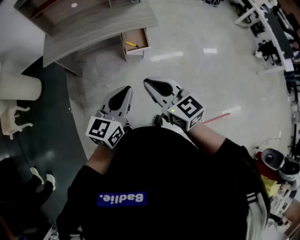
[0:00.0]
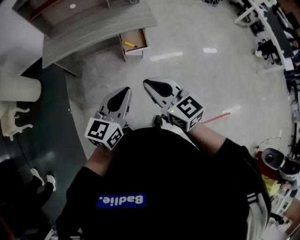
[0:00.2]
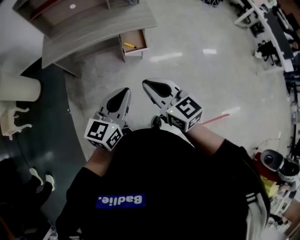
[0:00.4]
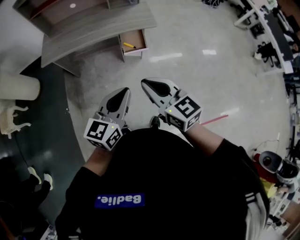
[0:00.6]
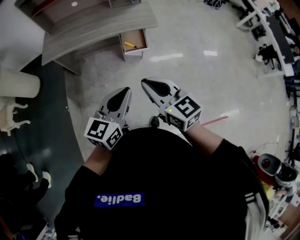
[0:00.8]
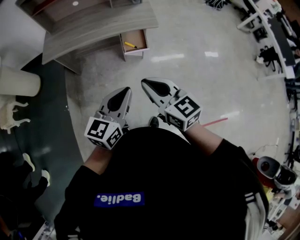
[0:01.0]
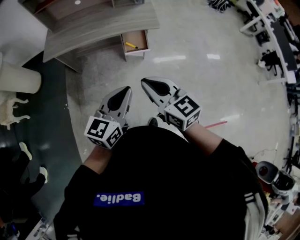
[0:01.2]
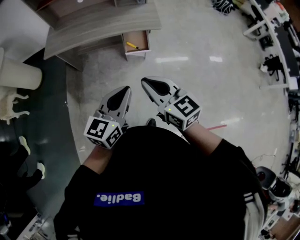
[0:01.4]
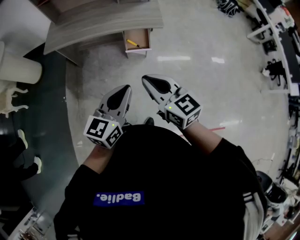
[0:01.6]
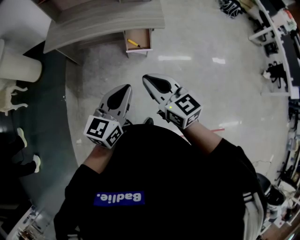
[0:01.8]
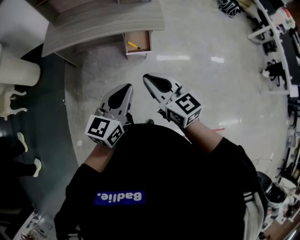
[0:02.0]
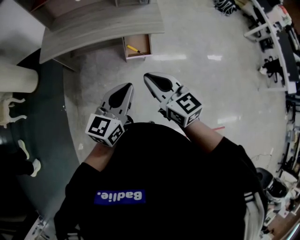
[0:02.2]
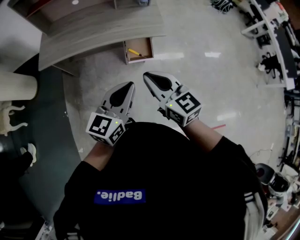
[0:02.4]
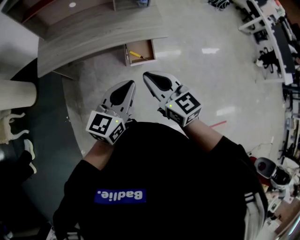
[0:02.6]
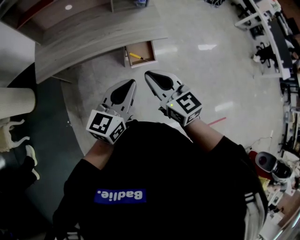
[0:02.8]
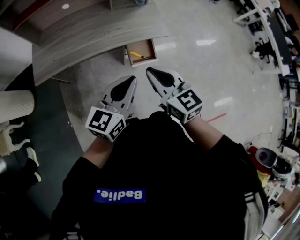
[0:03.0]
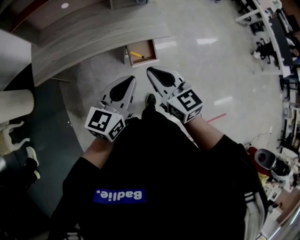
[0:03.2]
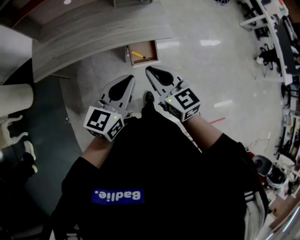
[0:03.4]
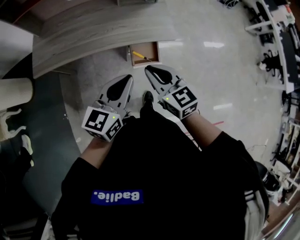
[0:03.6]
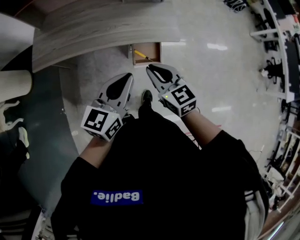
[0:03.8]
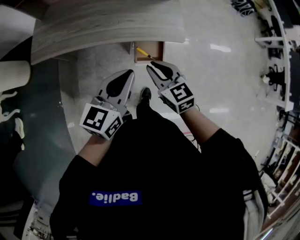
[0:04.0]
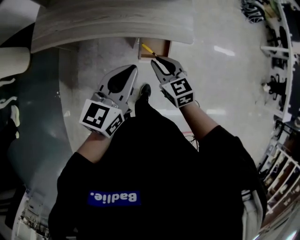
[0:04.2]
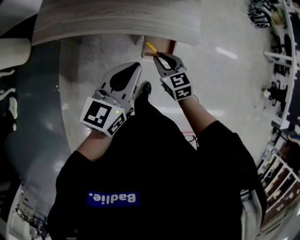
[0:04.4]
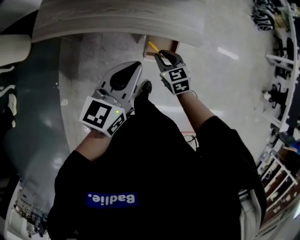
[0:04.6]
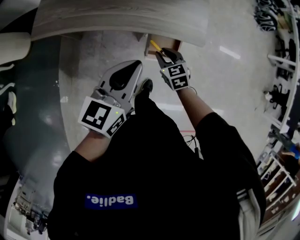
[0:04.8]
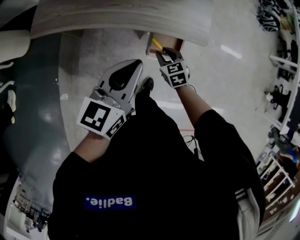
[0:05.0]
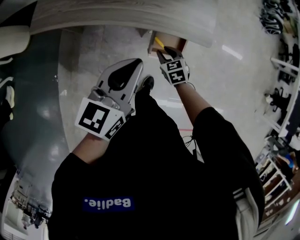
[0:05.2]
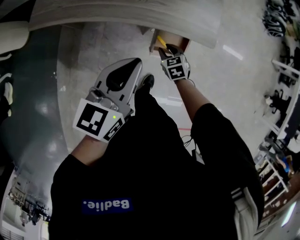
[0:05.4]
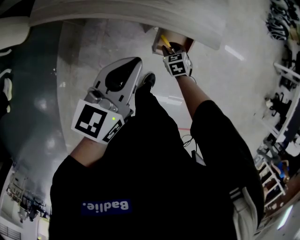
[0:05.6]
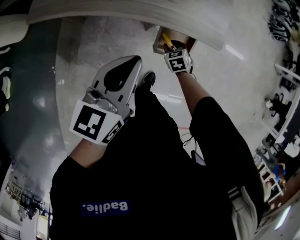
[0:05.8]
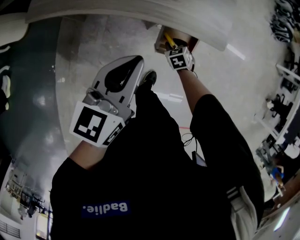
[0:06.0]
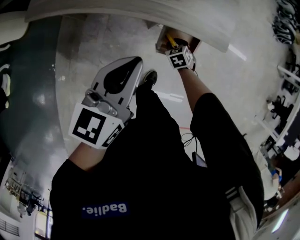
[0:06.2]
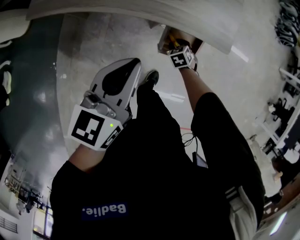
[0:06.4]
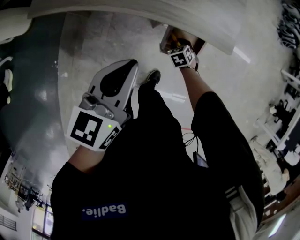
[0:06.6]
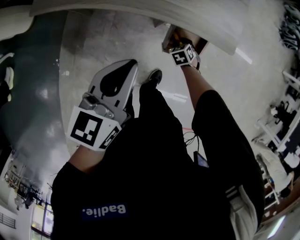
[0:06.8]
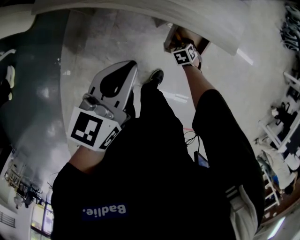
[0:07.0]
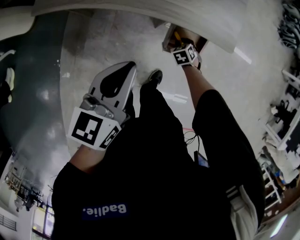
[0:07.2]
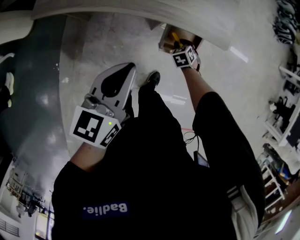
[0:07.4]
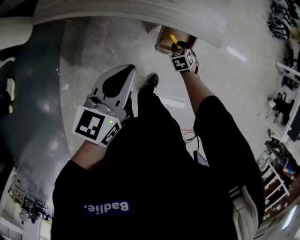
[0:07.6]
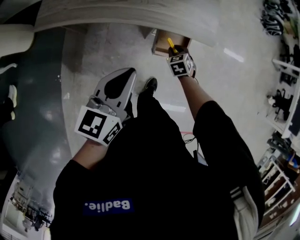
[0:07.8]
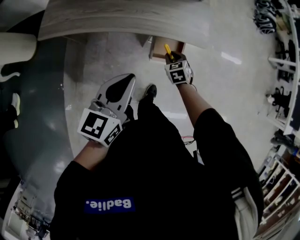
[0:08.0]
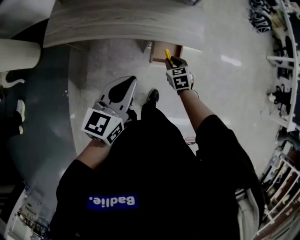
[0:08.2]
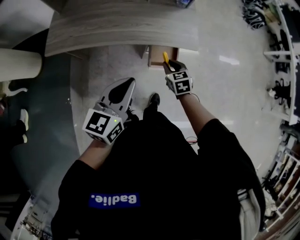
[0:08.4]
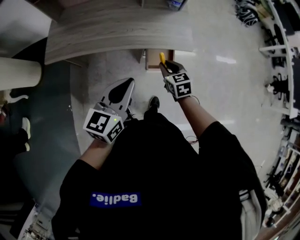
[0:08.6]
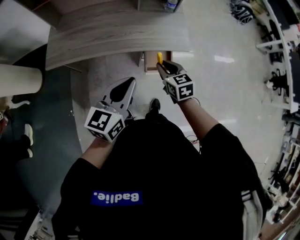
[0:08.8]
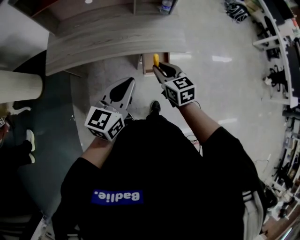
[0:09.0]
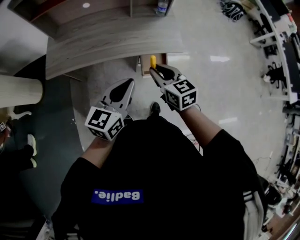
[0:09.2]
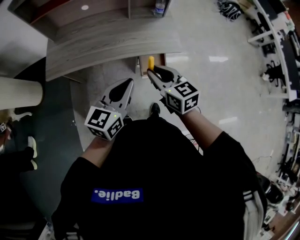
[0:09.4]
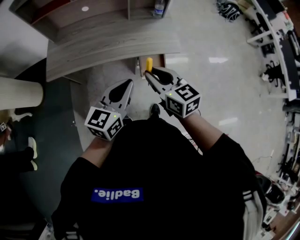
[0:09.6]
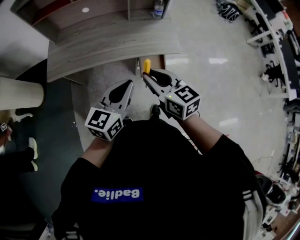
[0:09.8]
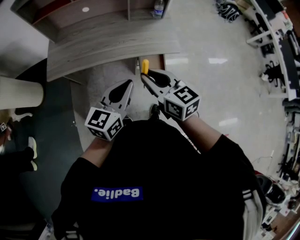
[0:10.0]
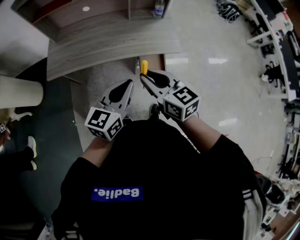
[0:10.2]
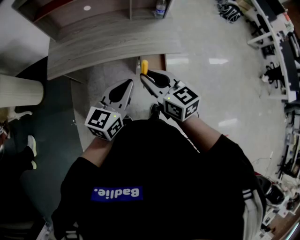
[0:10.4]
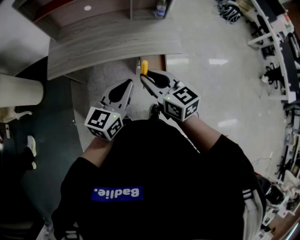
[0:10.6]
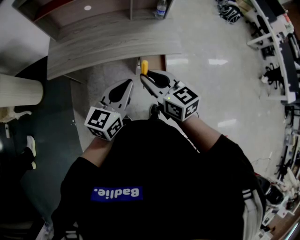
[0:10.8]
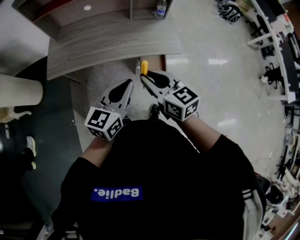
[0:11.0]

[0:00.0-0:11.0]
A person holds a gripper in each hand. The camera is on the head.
0:00.0 to 0:01.6: The grippers both shift to the right by some 5 cm.
0:01.6 to 0:03.2: Both grippers move forward and to the left, approximately 25 cm.
0:03.2 to 0:04.8: The right gripper is displaced downward and forward by about 35 cm, turns by about 30 degrees, and opens its fingers. The left gripper travels forward and downward by about 15 cm, and changes its angle by approximately 20 degrees.
0:04.8 to 0:06.2: The right gripper moves downward, about 20 cm, and swivels roughly 20 degrees, while the left gripper heads downward, covering roughly 5 cm.
0:06.2 to 0:07.8: The left gripper is displaced backward by approximately 5 cm; the right gripper is displaced upward by roughly 10 cm.
0:07.8 to 0:09.4: The right gripper goes about 35 cm upward, and points its fingers roughly 40 degrees further upward, while the left gripper is displaced upward by roughly 10 cm.
0:09.4 to 0:11.0: The right gripper shifts by approximately 5 cm.

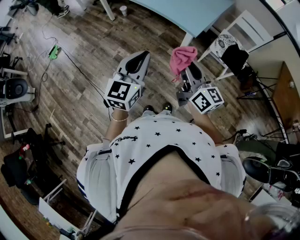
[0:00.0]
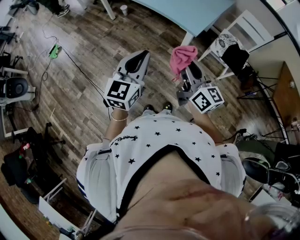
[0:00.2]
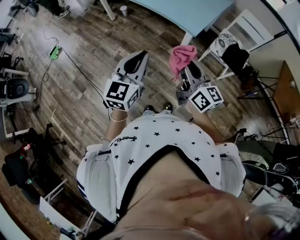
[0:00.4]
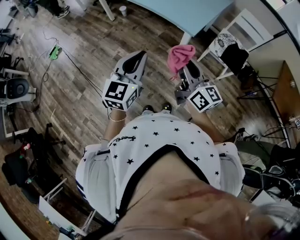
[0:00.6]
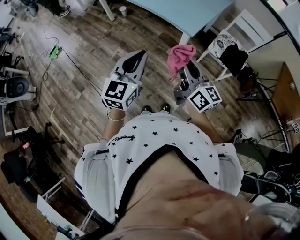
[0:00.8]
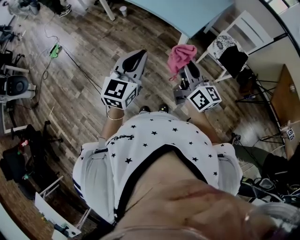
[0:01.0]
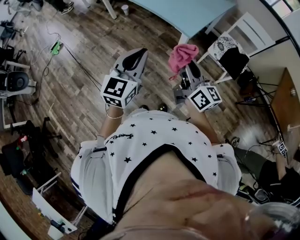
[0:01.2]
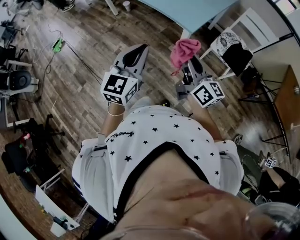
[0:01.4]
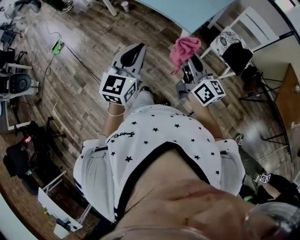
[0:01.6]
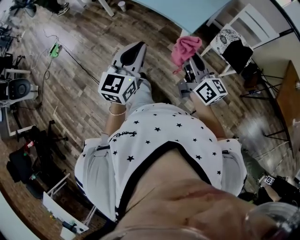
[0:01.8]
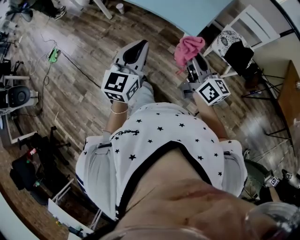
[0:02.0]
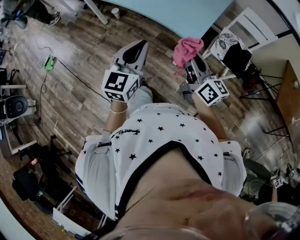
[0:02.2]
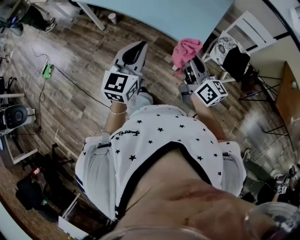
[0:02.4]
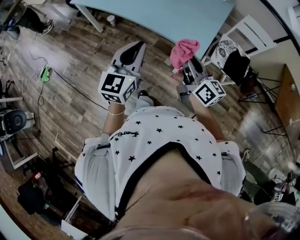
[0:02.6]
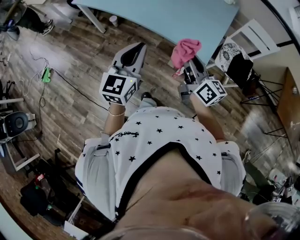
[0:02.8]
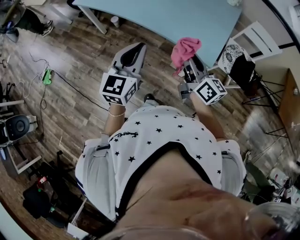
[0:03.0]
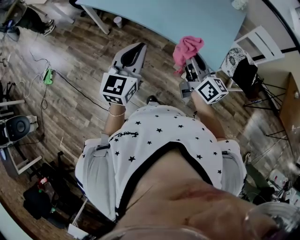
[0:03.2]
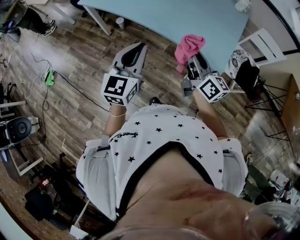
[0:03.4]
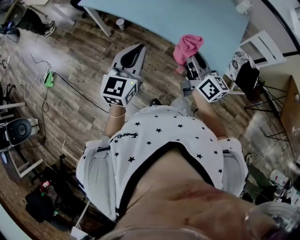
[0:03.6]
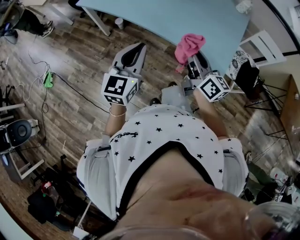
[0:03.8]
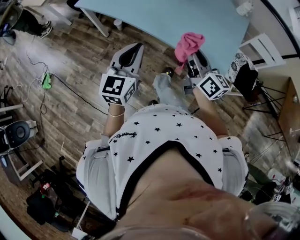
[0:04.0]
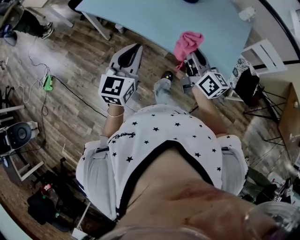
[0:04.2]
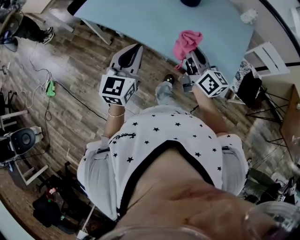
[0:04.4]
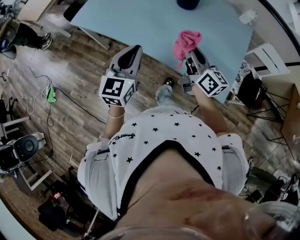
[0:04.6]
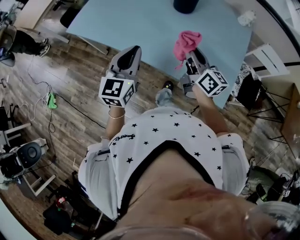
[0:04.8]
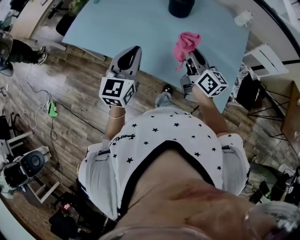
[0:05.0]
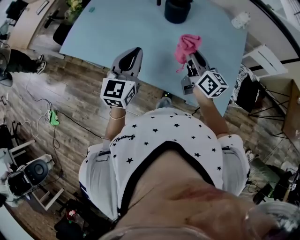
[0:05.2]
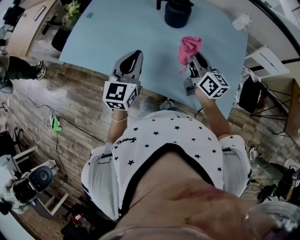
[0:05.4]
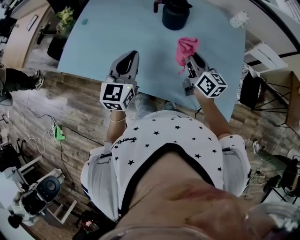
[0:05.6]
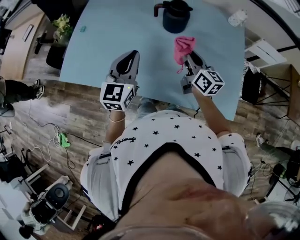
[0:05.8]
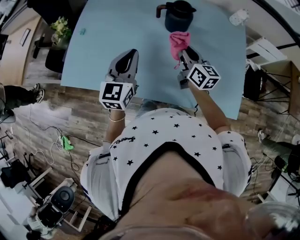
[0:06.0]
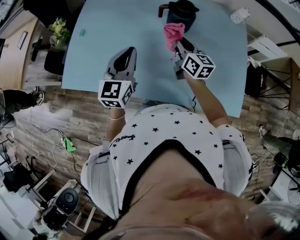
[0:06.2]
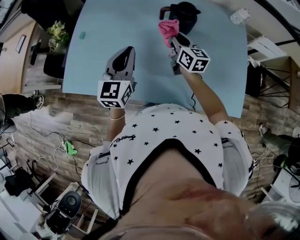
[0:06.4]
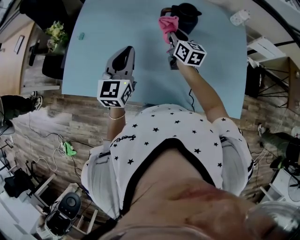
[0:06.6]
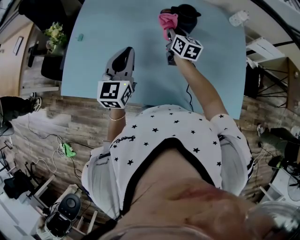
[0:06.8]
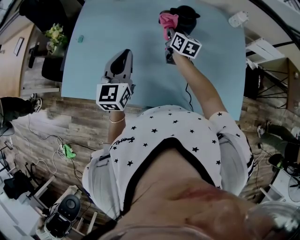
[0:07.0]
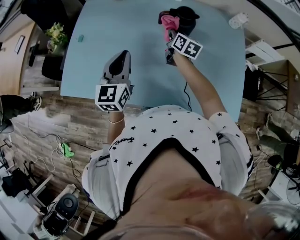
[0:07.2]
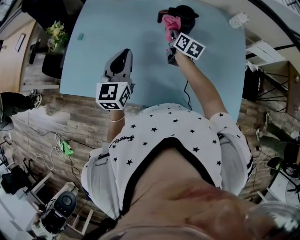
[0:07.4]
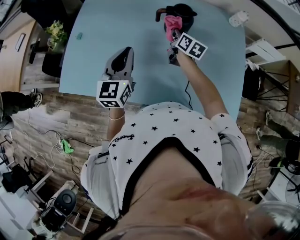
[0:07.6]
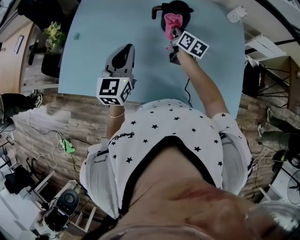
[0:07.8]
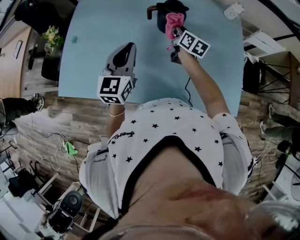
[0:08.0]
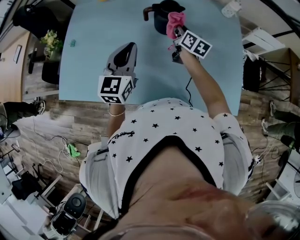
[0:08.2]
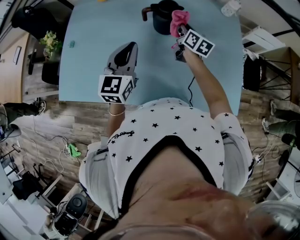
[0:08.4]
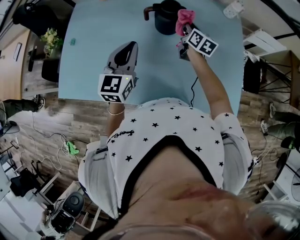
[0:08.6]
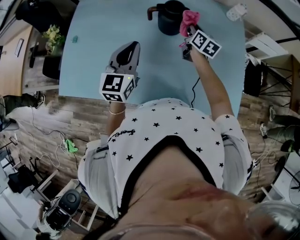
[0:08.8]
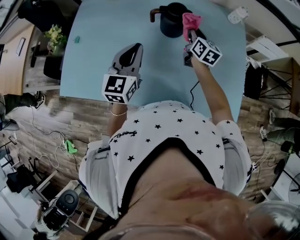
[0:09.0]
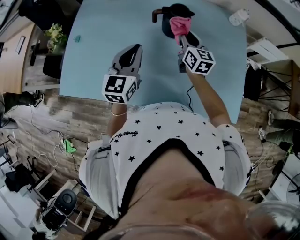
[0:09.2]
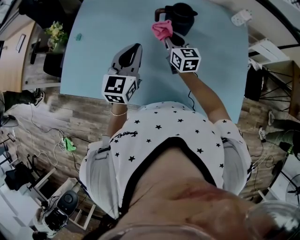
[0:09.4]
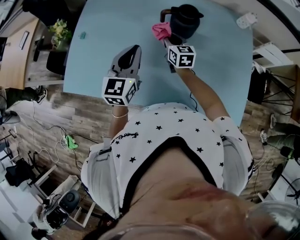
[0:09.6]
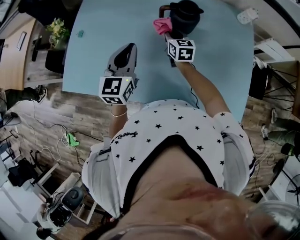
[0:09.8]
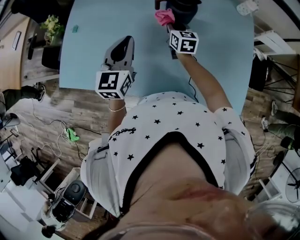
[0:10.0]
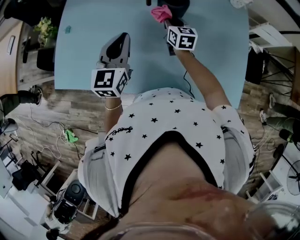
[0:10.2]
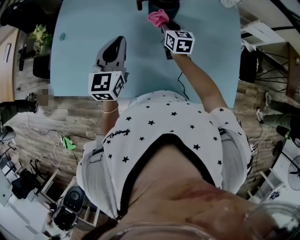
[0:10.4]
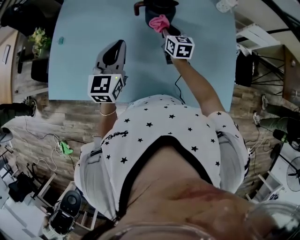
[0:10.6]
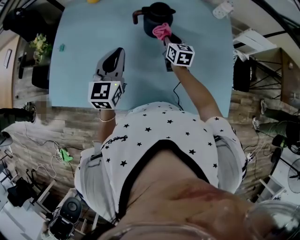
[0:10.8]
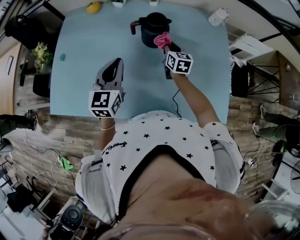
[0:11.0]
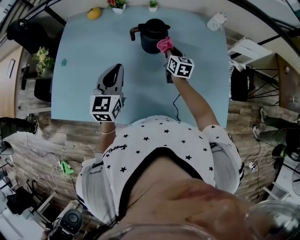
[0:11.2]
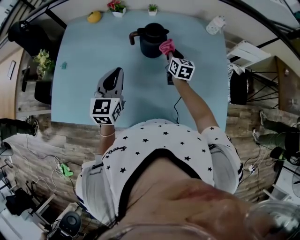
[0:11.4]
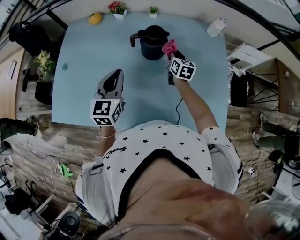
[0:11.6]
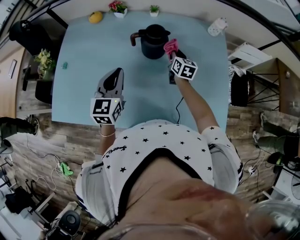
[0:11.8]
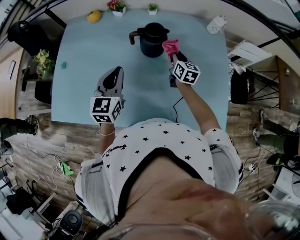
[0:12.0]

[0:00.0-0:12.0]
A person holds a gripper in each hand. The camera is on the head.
0:00.0 to 0:01.6: The grippers both shift to the right by roughly 5 cm.
0:01.6 to 0:03.0: Both grippers travel together forward and to the left, roughly 30 cm.
0:03.0 to 0:04.4: The right gripper is displaced forward by some 20 cm. The left gripper shifts approximately 20 cm forward and to the left.
0:04.4 to 0:06.0: Both grippers move forward, some 30 cm. The right gripper rotates about 20 degrees.
0:06.0 to 0:07.6: The right gripper heads forward and downward, covering about 15 cm, and swivels roughly 20 degrees.
0:07.6 to 0:09.0: The left gripper moves to the right, approximately 5 cm. The right gripper shifts roughly 10 cm to the right.
0:09.0 to 0:10.4: The right gripper moves to the left and downward, some 10 cm.
0:10.4 to 0:12.0: The right gripper is displaced to the right by roughly 10 cm.

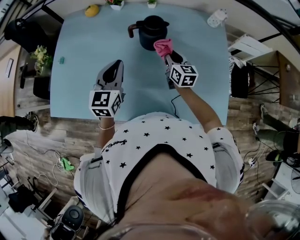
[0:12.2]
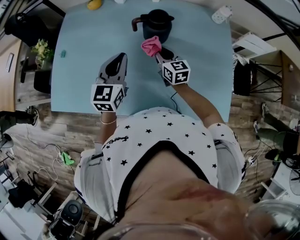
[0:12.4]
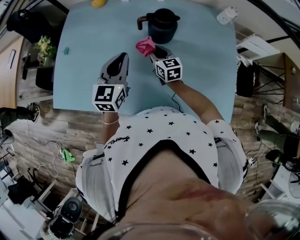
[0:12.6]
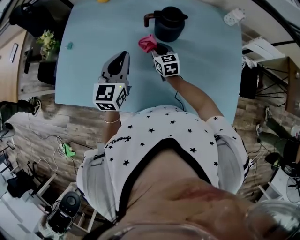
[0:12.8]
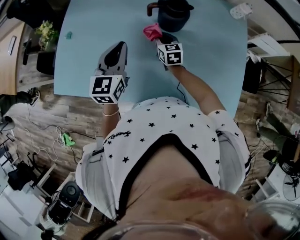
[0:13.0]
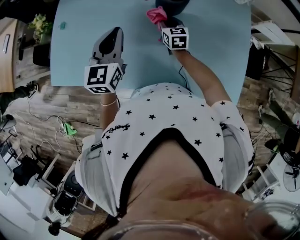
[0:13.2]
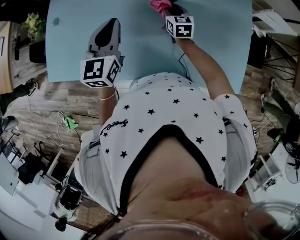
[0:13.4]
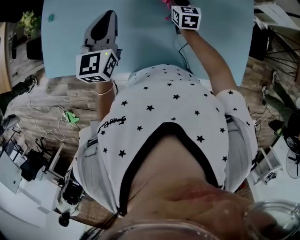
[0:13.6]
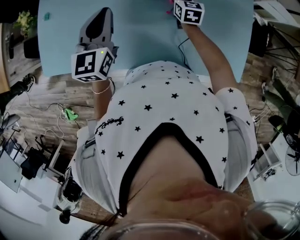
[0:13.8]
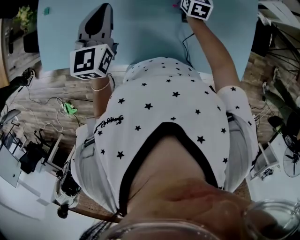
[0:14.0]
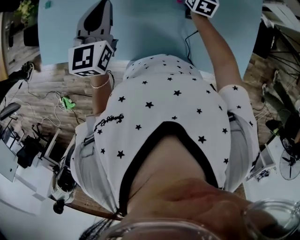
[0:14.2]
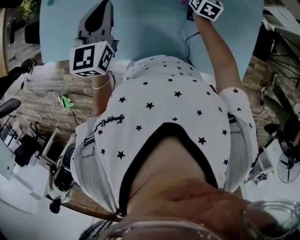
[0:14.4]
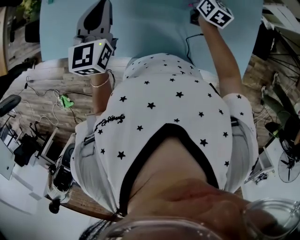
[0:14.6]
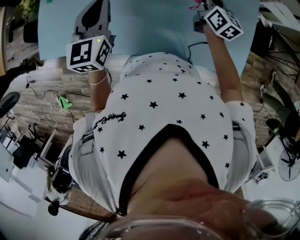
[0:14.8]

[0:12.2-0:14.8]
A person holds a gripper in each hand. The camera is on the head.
0:12.2 to 0:13.4: The right gripper goes about 10 cm downward and to the left.
0:13.4 to 0:14.8: The right gripper heads to the right and upward, covering approximately 15 cm, and rotates some 30 degrees.
